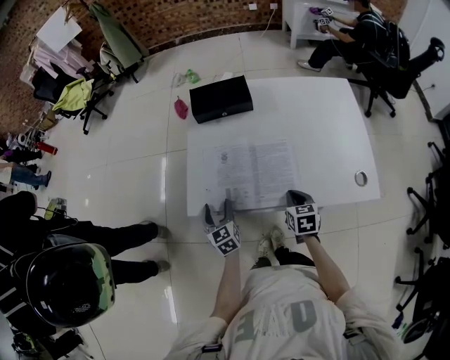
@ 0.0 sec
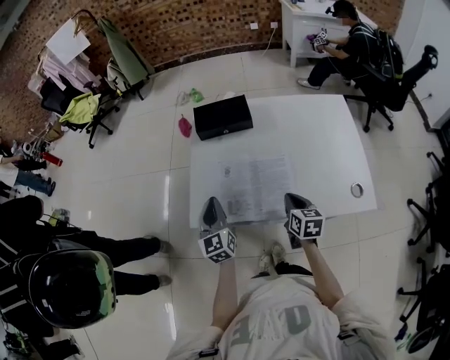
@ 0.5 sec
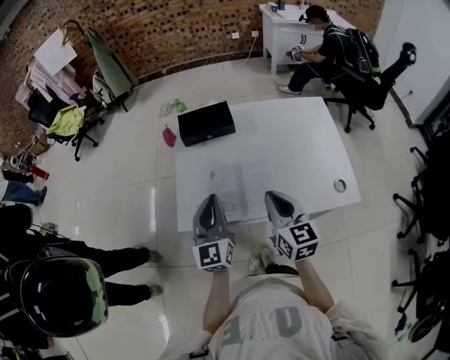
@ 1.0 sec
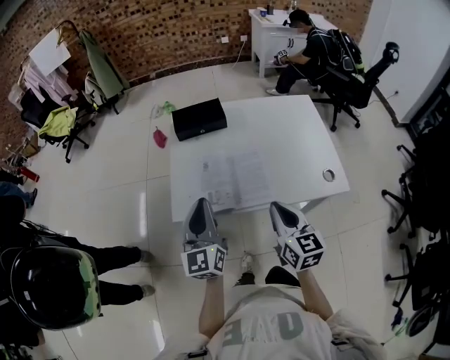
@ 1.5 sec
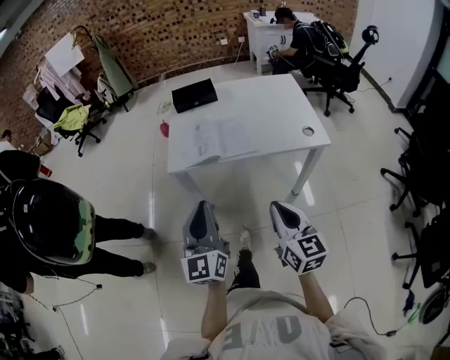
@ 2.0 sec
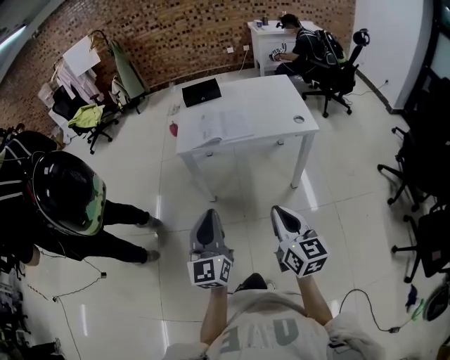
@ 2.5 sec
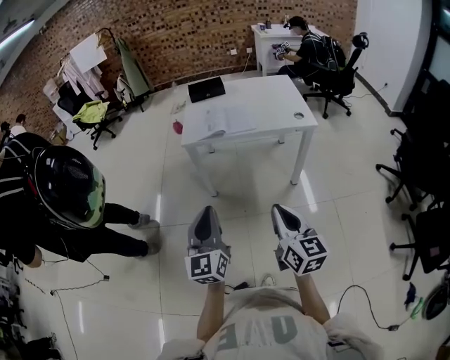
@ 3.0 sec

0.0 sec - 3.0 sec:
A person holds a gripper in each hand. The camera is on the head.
0.0 sec - 1.5 sec: The right gripper is displaced upward and backward by approximately 25 cm, and points its fingers about 30 degrees further upward, while the left gripper is displaced upward by roughly 25 cm, points its fingers some 30 degrees further upward, and closes up.
1.5 sec - 3.0 sec: The pair of grippers is taken backward, about 50 cm.

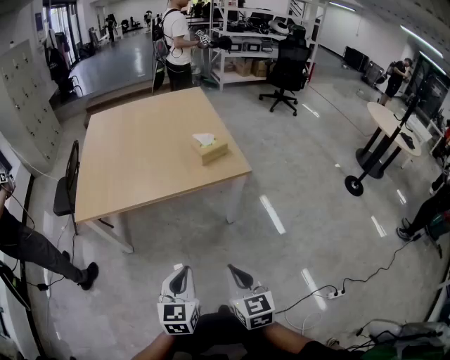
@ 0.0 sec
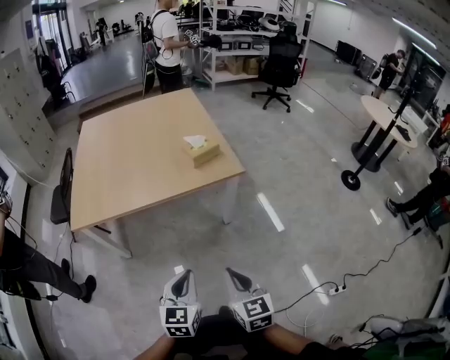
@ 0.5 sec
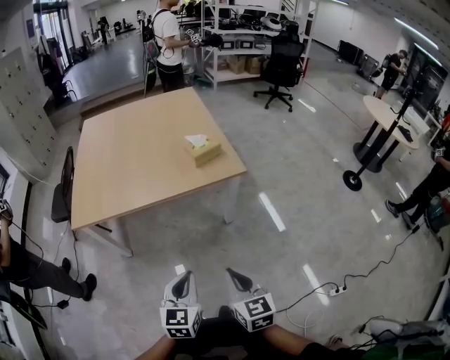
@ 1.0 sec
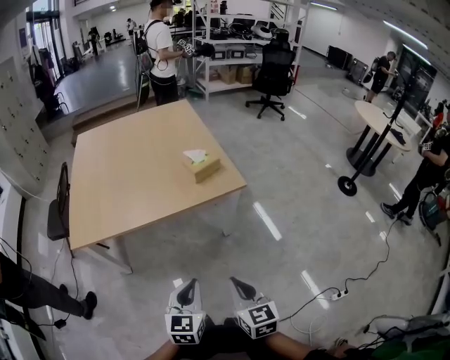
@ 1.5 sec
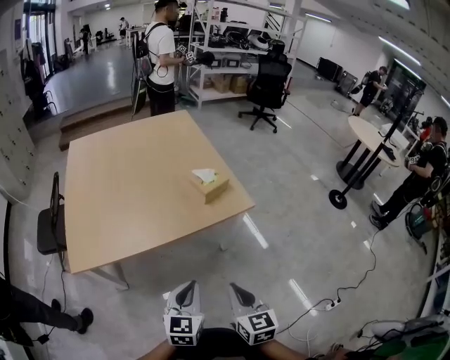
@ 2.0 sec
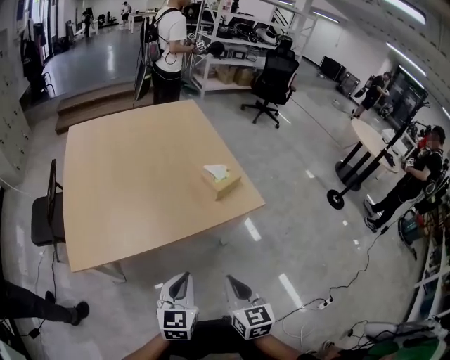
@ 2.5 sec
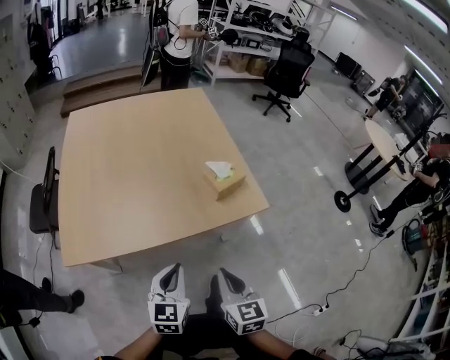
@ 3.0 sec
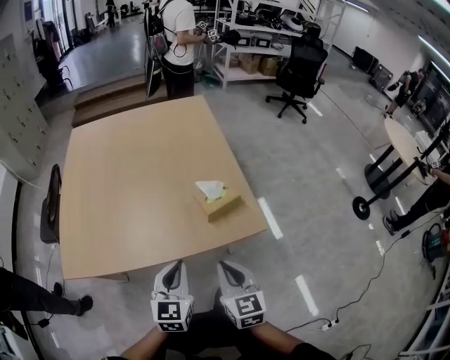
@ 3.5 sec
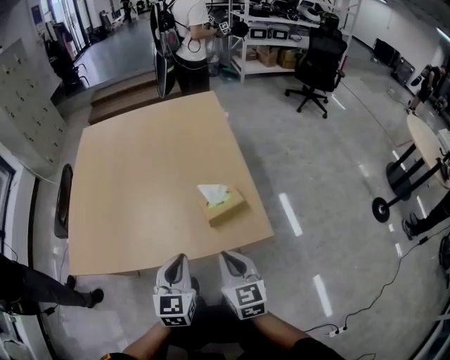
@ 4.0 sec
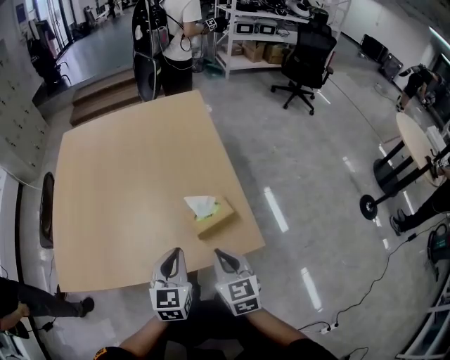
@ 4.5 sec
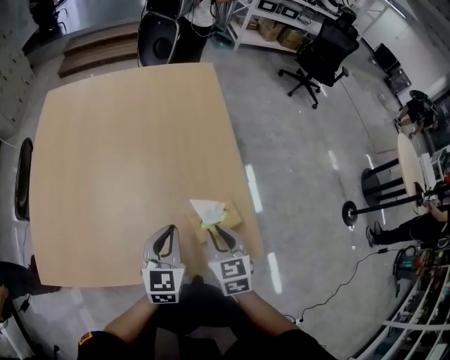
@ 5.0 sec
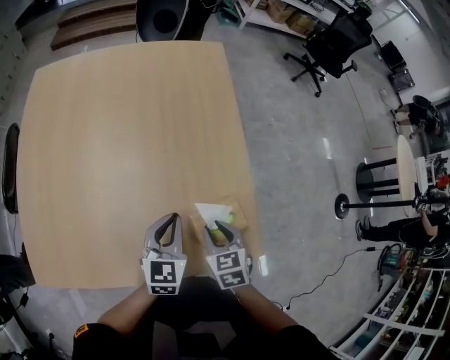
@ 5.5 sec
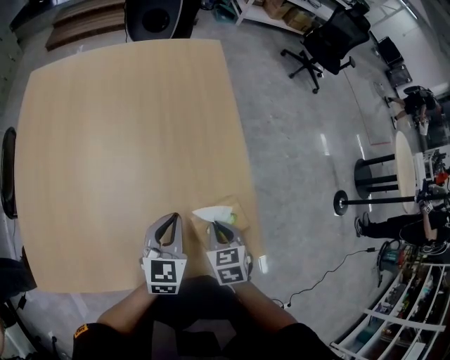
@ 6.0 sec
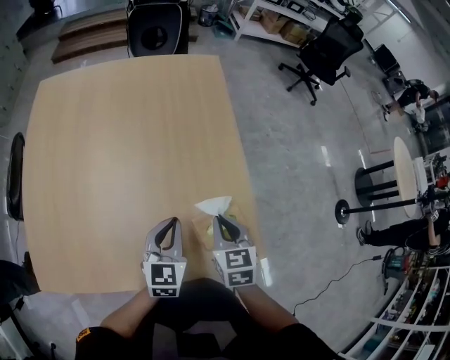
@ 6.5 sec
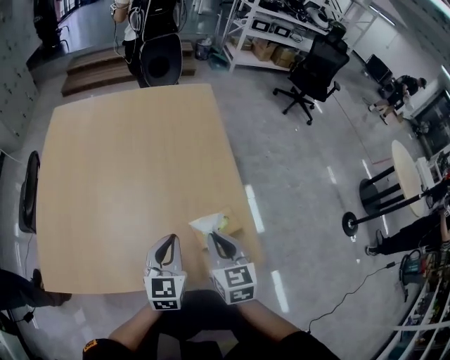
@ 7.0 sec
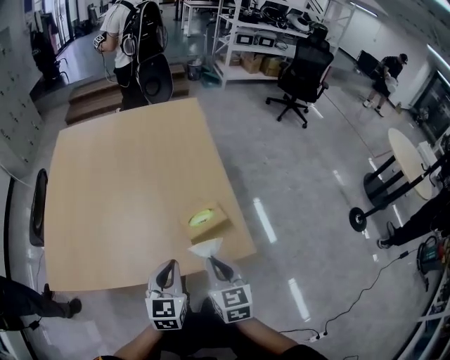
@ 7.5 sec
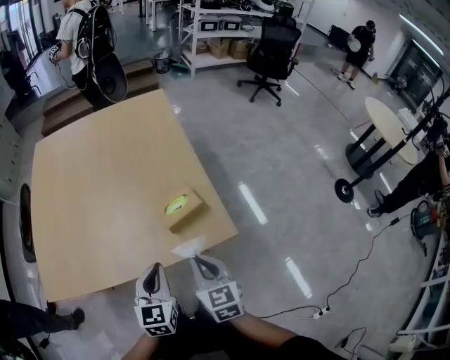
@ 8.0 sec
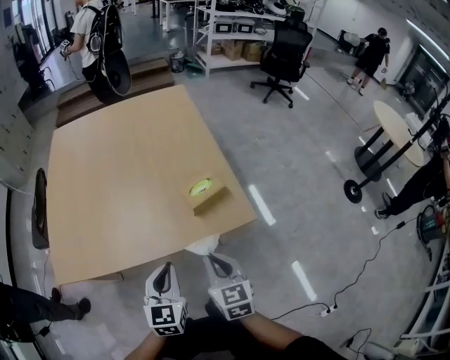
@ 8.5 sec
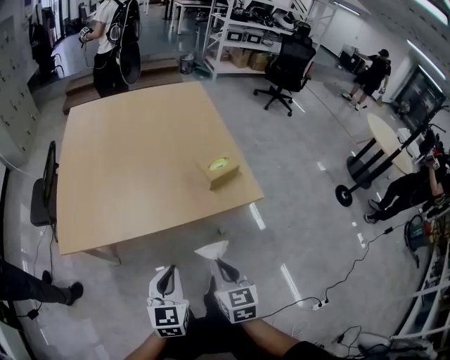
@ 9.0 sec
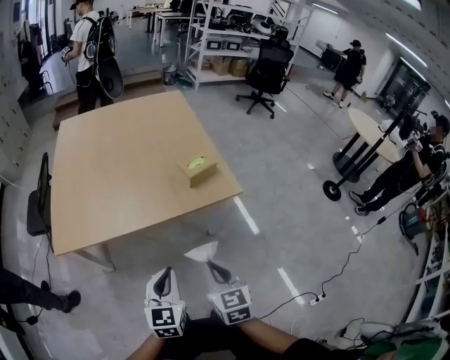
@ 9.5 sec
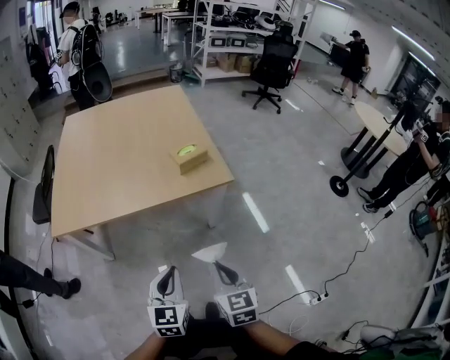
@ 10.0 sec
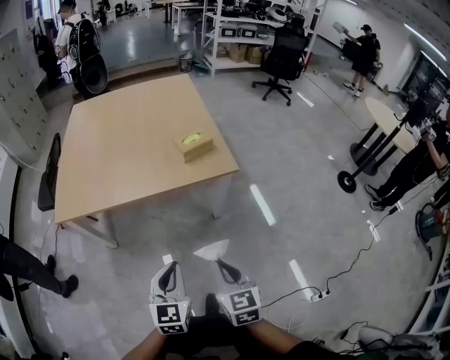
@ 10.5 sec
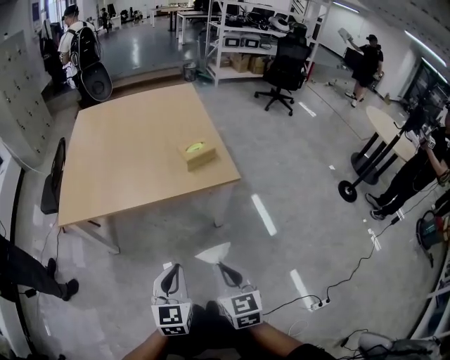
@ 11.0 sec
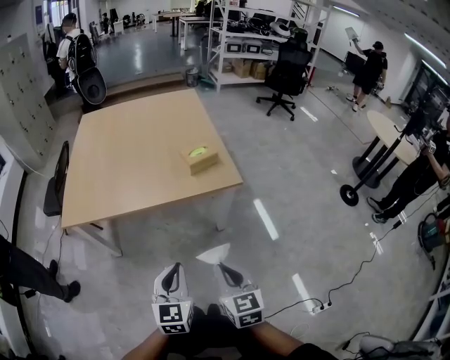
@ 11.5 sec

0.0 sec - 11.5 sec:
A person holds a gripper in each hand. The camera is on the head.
0.0 sec - 2.0 sec: Both grippers travel together forward and to the left, approximately 15 cm.
2.0 sec - 4.0 sec: Both grippers move forward, some 25 cm.
4.0 sec - 6.0 sec: The left gripper goes about 20 cm forward. The right gripper goes about 20 cm forward and downward, angles its fingers downward, by some 30 degrees, and opens, then closes again.
6.0 sec - 7.5 sec: The right gripper is displaced backward and upward by some 15 cm, and changes its angle by roughly 30 degrees. Meanwhile the left gripper travels backward by some 15 cm.
7.5 sec - 9.5 sec: Both grippers move backward, some 25 cm.
9.5 sec - 11.5 sec: Both grippers travel together to the right and backward, some 10 cm.

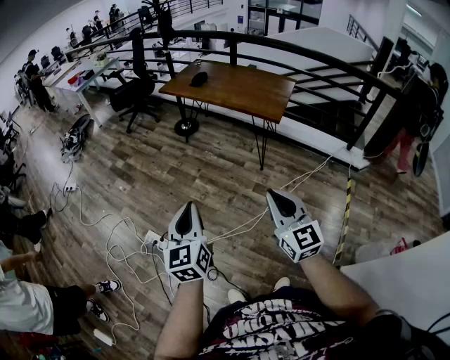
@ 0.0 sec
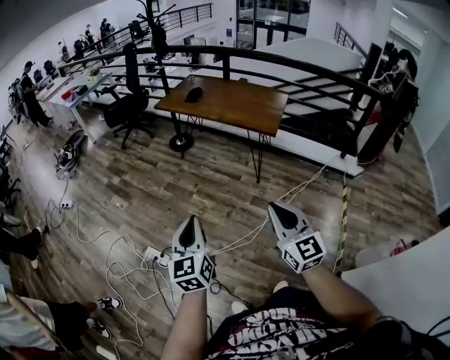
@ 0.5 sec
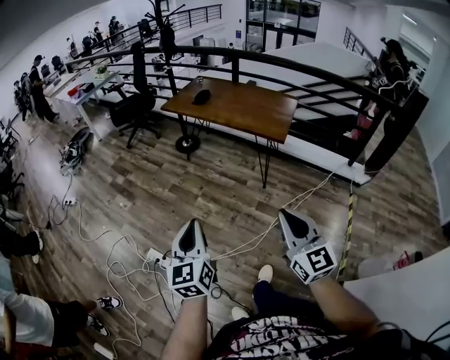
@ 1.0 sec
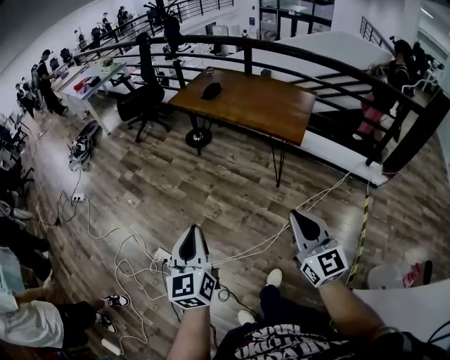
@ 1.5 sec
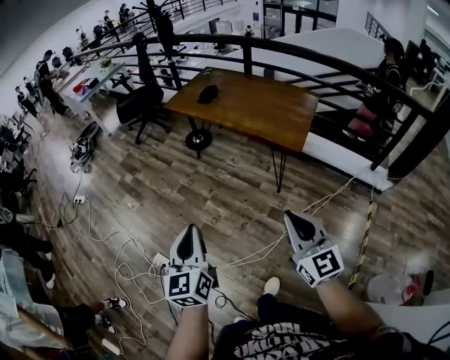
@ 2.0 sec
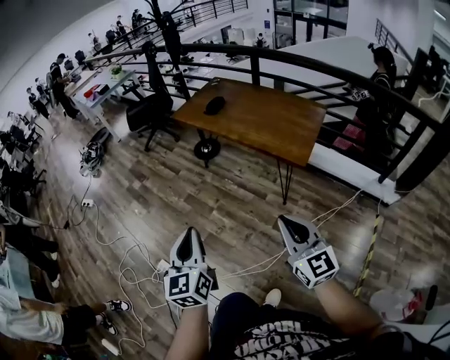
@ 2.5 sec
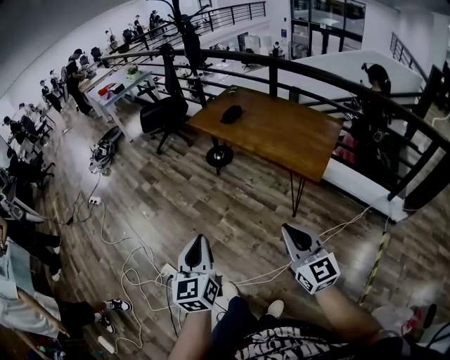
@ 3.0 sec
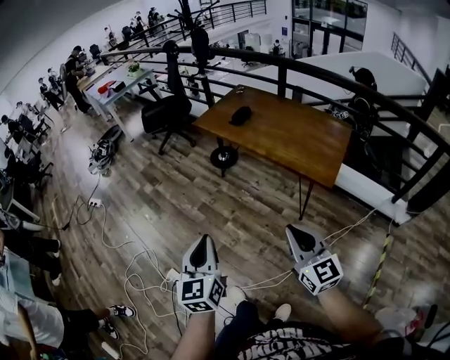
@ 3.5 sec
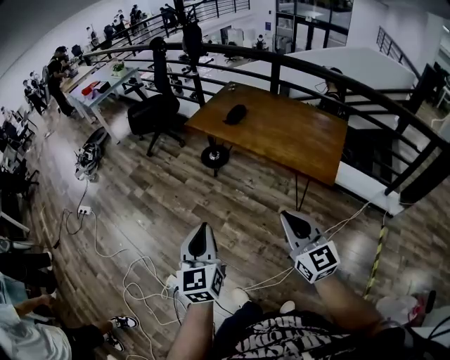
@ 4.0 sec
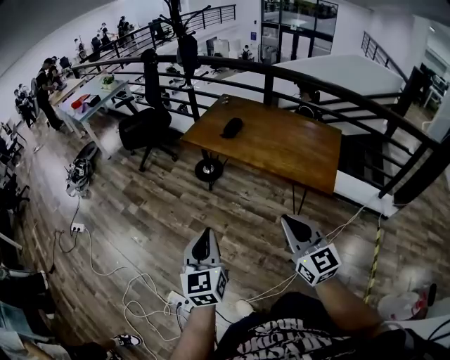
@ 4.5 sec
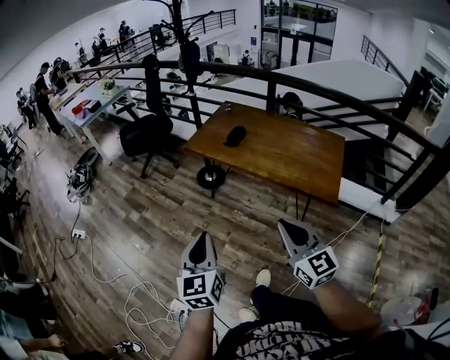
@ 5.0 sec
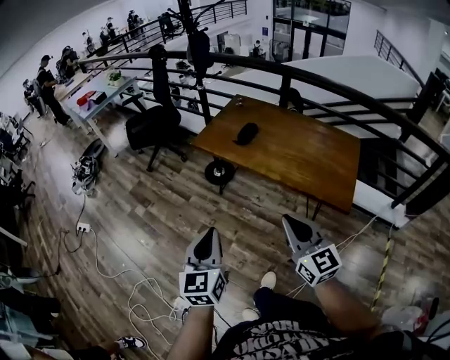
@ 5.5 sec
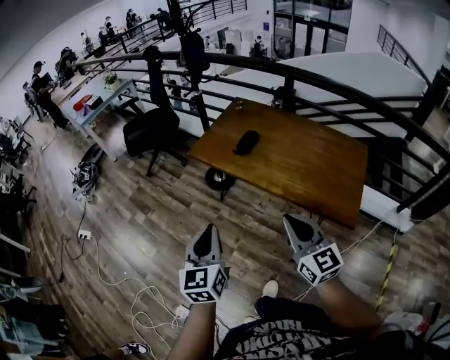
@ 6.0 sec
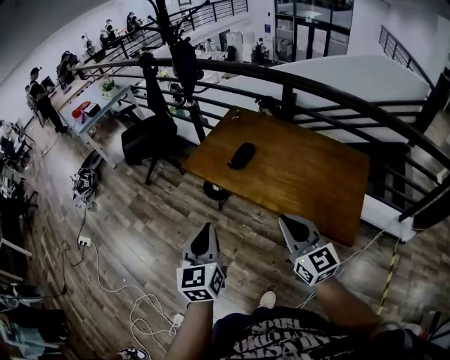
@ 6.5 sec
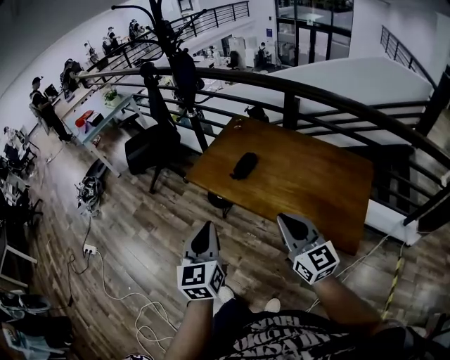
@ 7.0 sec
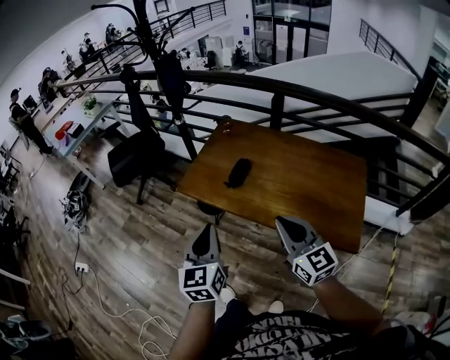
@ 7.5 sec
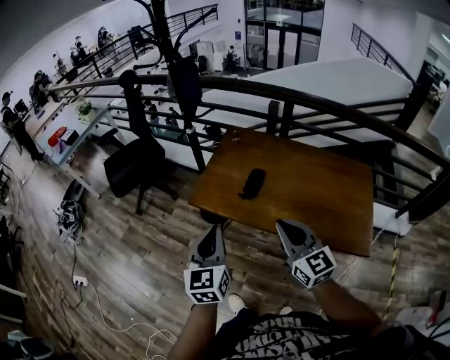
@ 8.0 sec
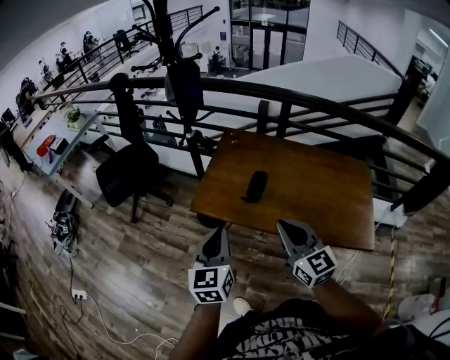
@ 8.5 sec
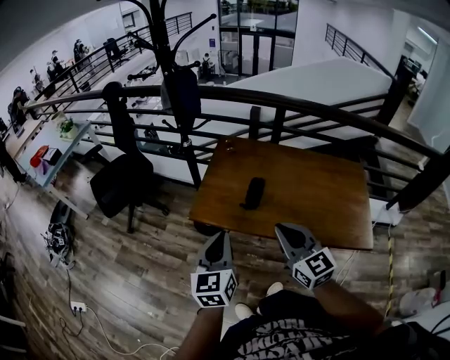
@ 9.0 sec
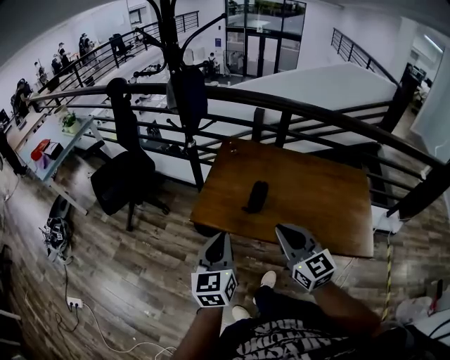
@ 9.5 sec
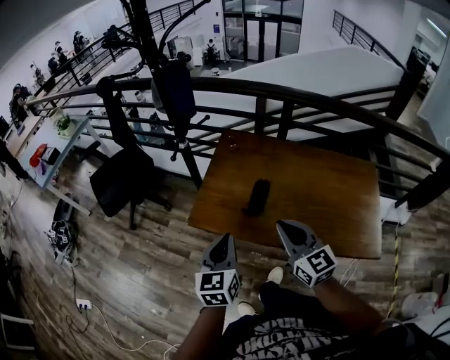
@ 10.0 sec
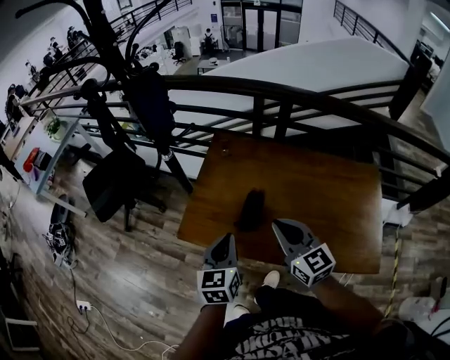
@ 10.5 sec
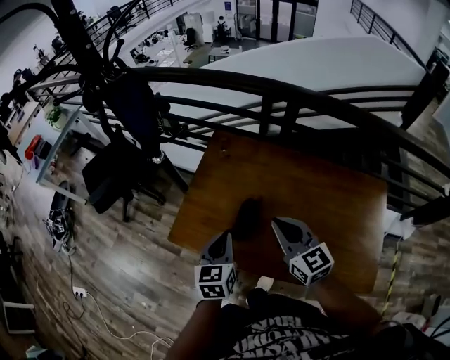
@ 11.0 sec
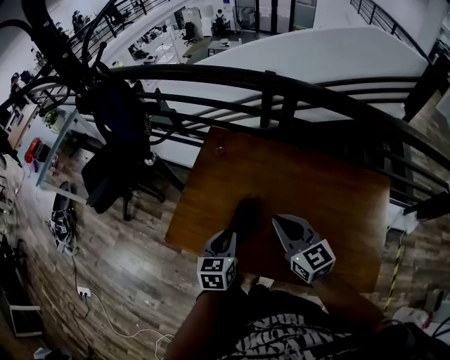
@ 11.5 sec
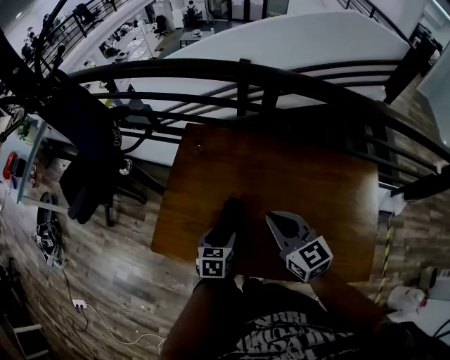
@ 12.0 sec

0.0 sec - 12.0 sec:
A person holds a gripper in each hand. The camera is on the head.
0.0 sec - 2.0 sec: The grippers both shift forward by approximately 20 cm.
2.0 sec - 4.0 sec: Both grippers travel together forward and to the left, about 25 cm.
4.0 sec - 6.0 sec: The two grippers go roughly 25 cm forward.
6.0 sec - 8.0 sec: Both grippers move forward, some 25 cm.
8.0 sec - 10.0 sec: The right gripper goes about 10 cm forward. The left gripper travels forward and downward by some 15 cm.
10.0 sec - 12.0 sec: The left gripper shifts some 35 cm downward, forward and to the right, turns by about 30 degrees, and opens, while the right gripper heads forward and to the right, covering some 25 cm.
